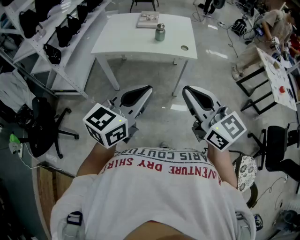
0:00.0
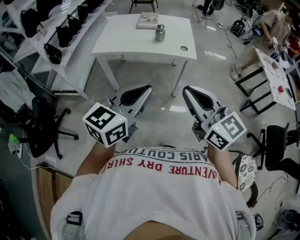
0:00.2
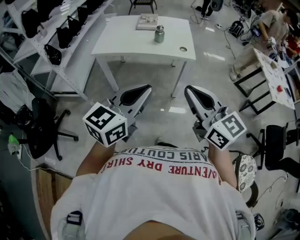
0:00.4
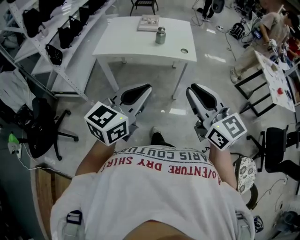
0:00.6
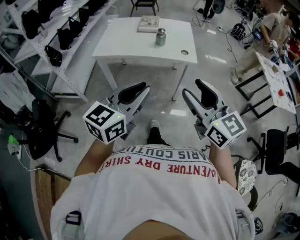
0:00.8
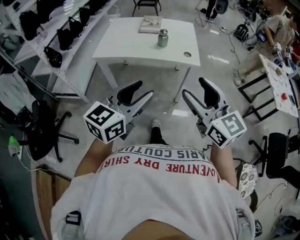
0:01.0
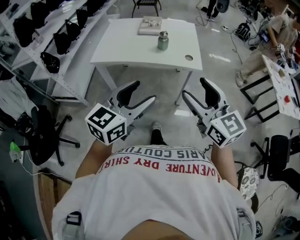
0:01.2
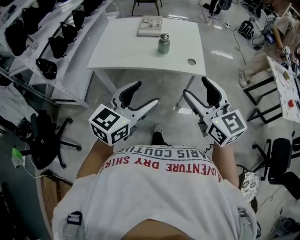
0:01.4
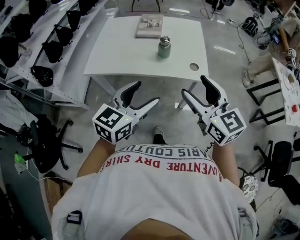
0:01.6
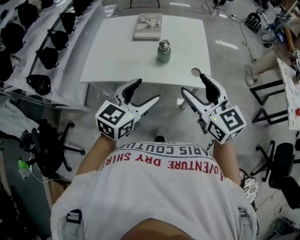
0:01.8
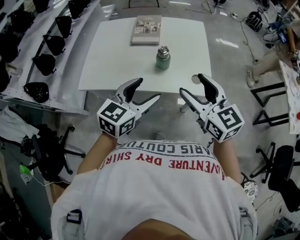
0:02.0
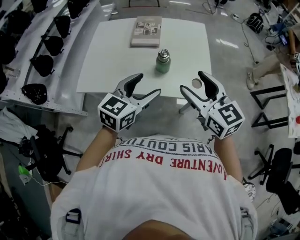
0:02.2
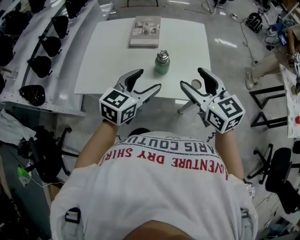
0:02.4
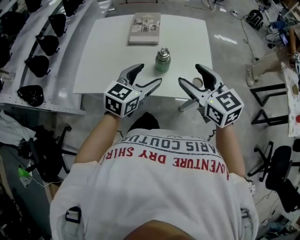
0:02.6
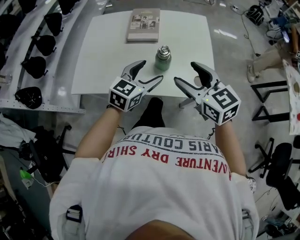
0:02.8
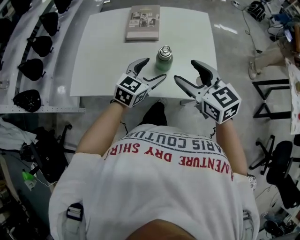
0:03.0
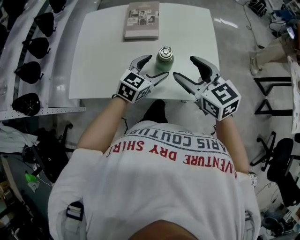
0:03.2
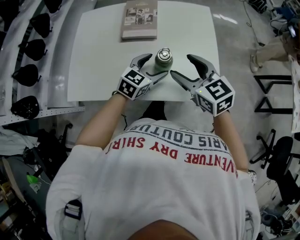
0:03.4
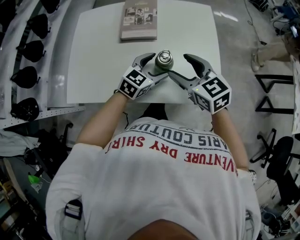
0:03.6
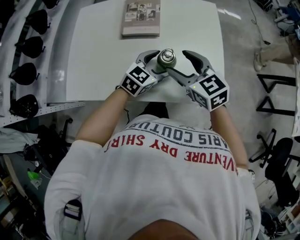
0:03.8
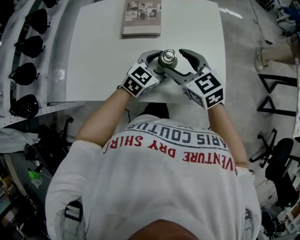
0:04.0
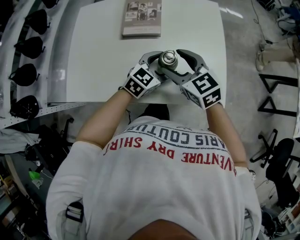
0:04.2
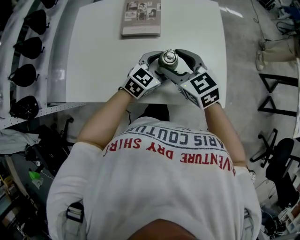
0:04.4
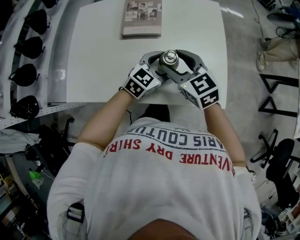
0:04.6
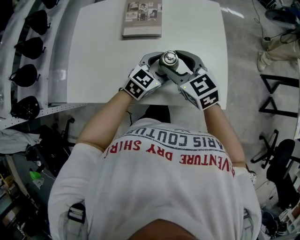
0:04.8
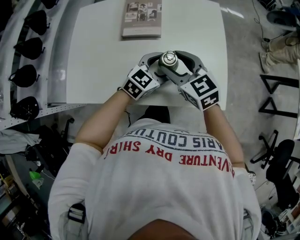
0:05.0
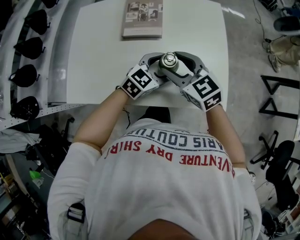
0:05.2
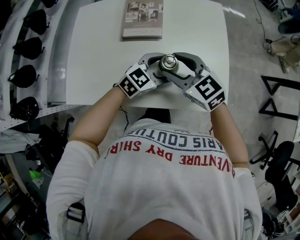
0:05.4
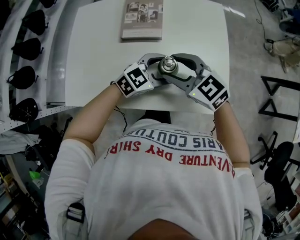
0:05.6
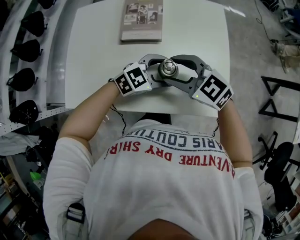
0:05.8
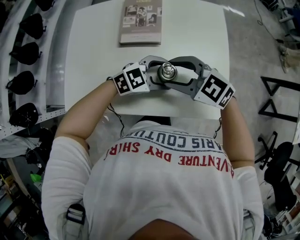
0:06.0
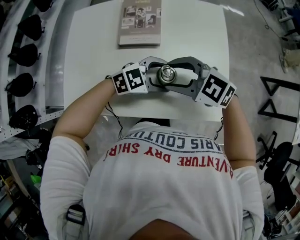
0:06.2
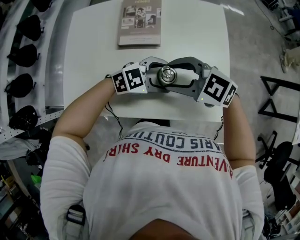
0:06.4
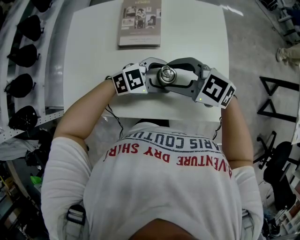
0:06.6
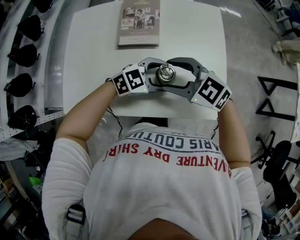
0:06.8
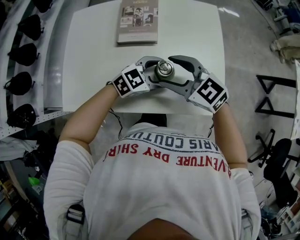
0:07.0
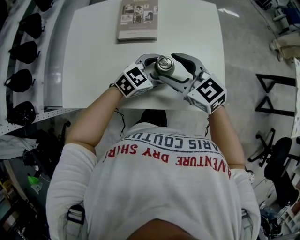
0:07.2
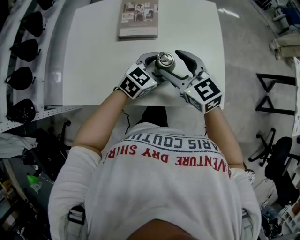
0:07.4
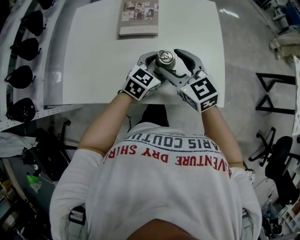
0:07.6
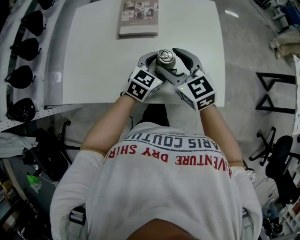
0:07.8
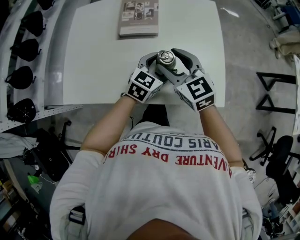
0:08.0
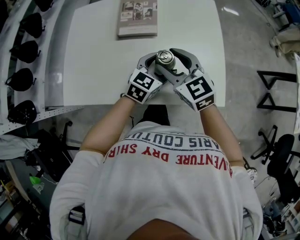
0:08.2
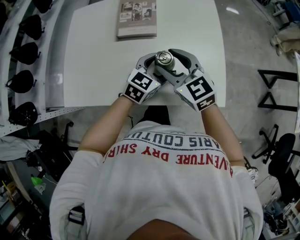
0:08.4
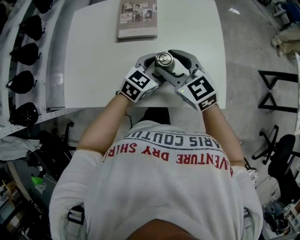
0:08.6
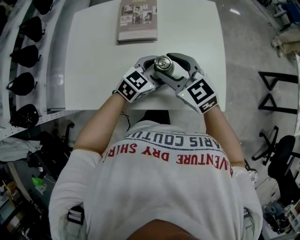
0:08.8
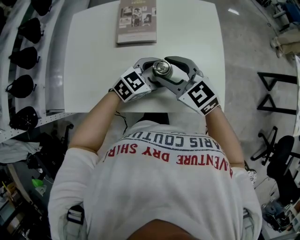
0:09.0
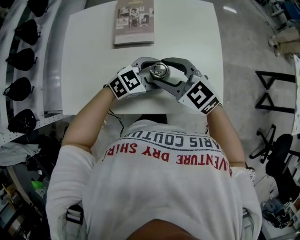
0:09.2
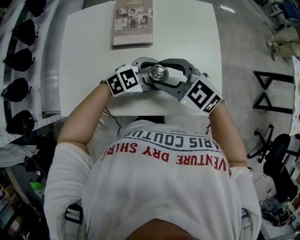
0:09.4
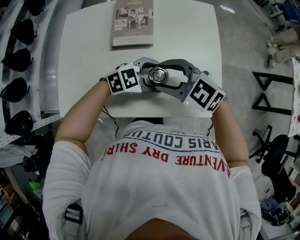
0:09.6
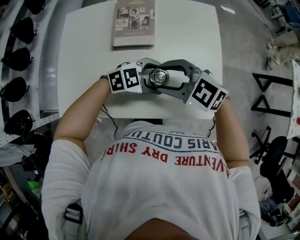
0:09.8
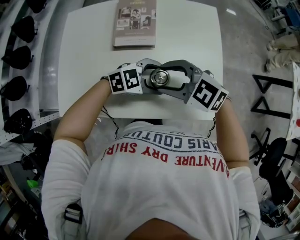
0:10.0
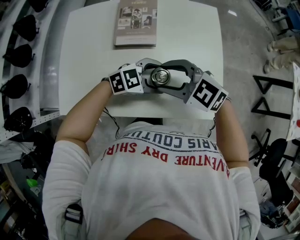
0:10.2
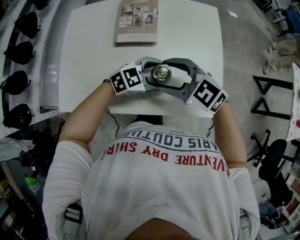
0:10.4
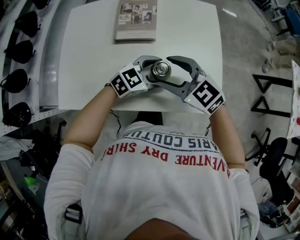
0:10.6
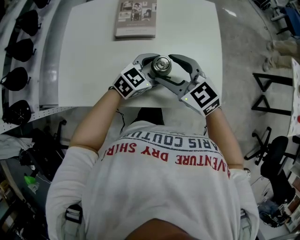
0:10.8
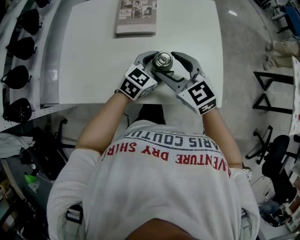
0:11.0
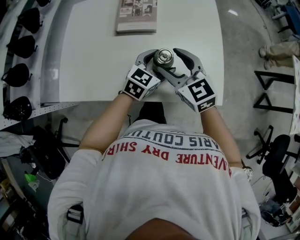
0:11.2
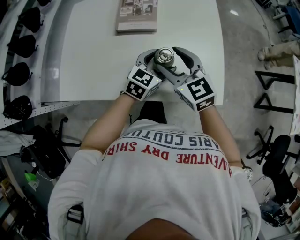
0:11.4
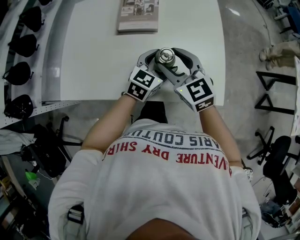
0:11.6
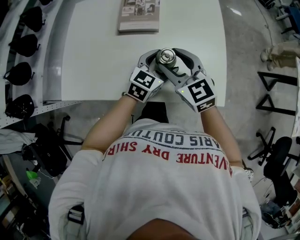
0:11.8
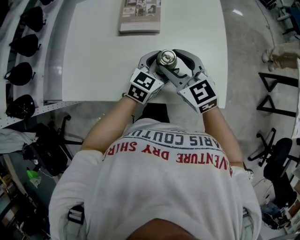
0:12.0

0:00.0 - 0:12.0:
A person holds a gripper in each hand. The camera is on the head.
0:00.0 - 0:01.6: The grippers both shift forward by some 25 cm. The right gripper opens its fingers, while the left gripper opens its fingers.
0:01.6 - 0:03.0: The grippers both shift forward and downward by about 30 cm.
0:03.0 - 0:04.4: The right gripper heads forward, downward and to the left, covering approximately 15 cm; the left gripper travels downward and forward by some 10 cm.
0:04.4 - 0:06.0: The left gripper turns by some 30 degrees. Meanwhile the right gripper swivels some 30 degrees.
0:06.0 - 0:07.6: The right gripper changes its angle by approximately 30 degrees, while the left gripper turns by some 30 degrees.
0:07.6 - 0:09.0: The grippers stay close to where they were, moving slightly.
0:10.4 - 0:12.0: The right gripper turns by about 30 degrees; the left gripper turns by approximately 40 degrees.

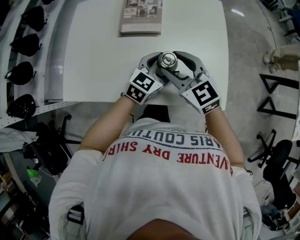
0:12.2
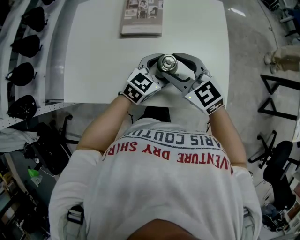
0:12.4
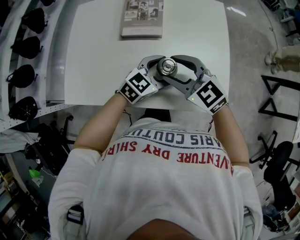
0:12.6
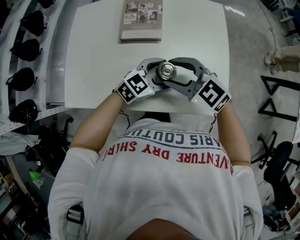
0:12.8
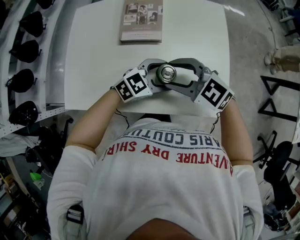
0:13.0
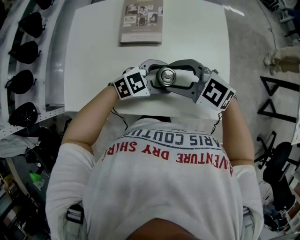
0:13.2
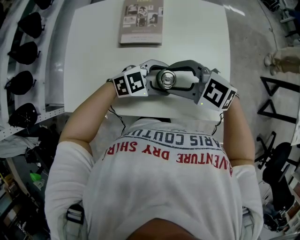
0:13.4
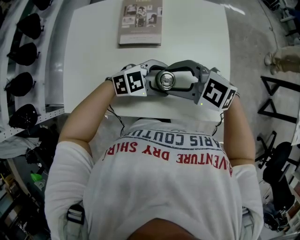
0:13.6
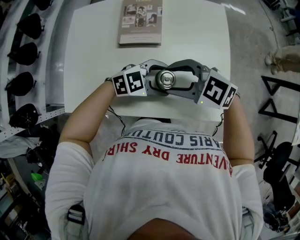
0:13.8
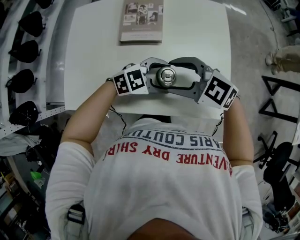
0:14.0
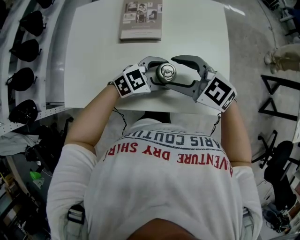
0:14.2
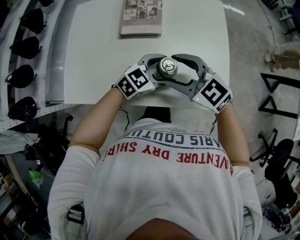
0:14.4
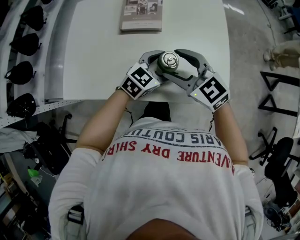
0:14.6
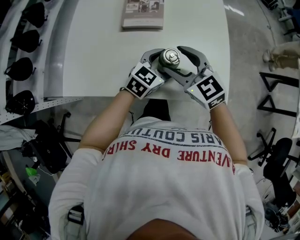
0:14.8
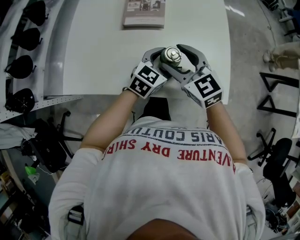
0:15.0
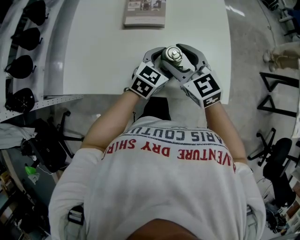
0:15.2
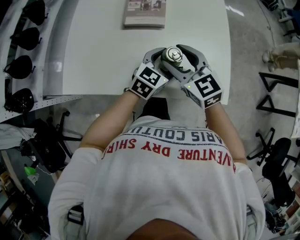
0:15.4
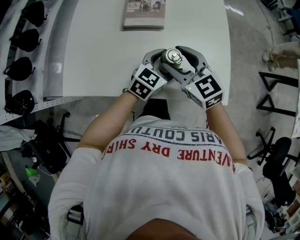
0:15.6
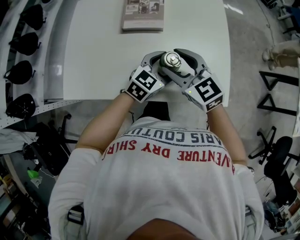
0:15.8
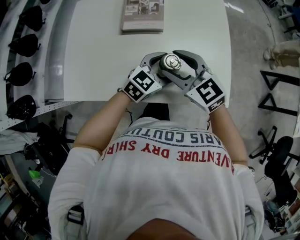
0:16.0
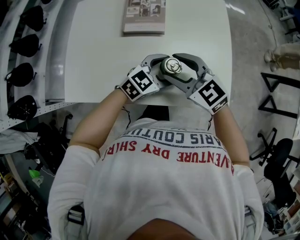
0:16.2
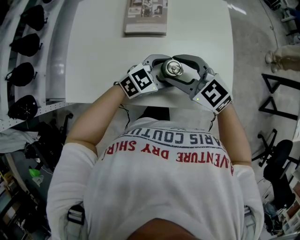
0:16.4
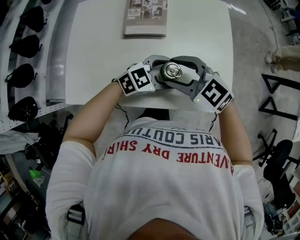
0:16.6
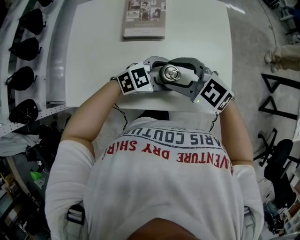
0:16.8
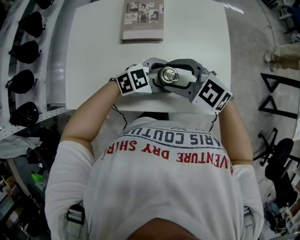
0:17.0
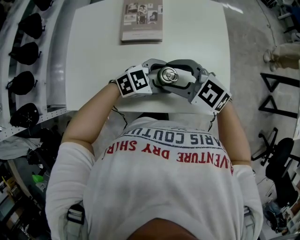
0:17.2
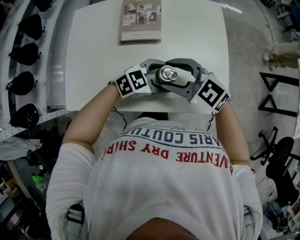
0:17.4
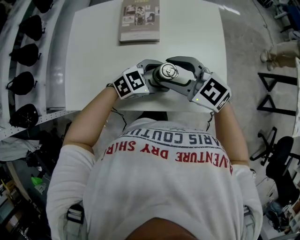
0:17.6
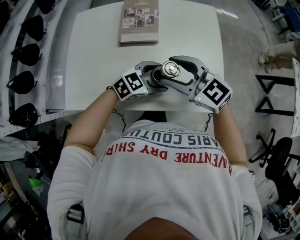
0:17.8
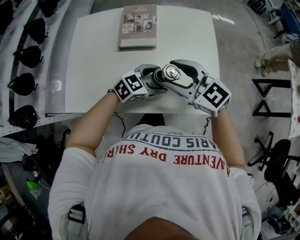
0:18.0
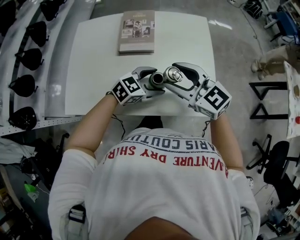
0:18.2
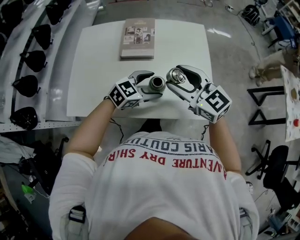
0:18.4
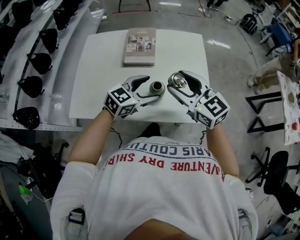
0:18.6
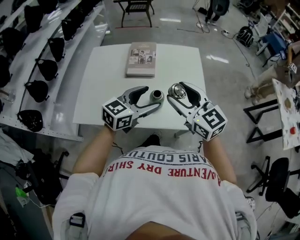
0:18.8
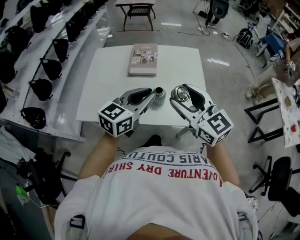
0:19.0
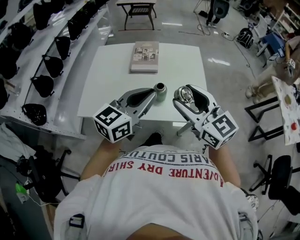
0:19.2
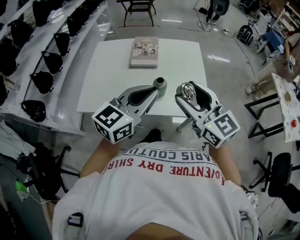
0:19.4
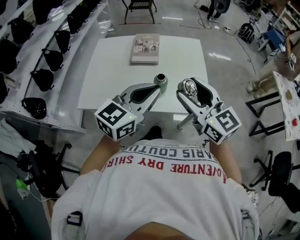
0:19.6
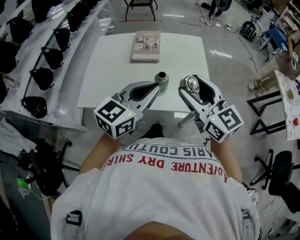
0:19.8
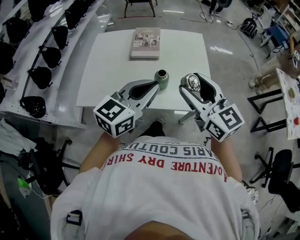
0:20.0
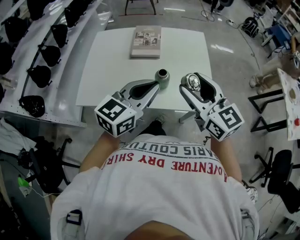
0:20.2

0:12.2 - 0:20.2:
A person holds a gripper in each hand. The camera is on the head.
0:12.2 - 0:13.8: The right gripper changes its angle by some 40 degrees, while the left gripper changes its angle by some 40 degrees.
0:13.8 - 0:15.4: The right gripper rotates some 40 degrees. The left gripper changes its angle by some 50 degrees.
0:15.4 - 0:17.0: The left gripper rotates approximately 40 degrees; the right gripper swivels roughly 30 degrees.
0:17.0 - 0:18.6: Both grippers travel together upward, some 10 cm. The right gripper turns by some 30 degrees, while the left gripper turns by some 30 degrees.
0:18.6 - 0:20.2: The left gripper shifts about 15 cm upward and backward, and closes up. The right gripper goes some 10 cm backward and upward.

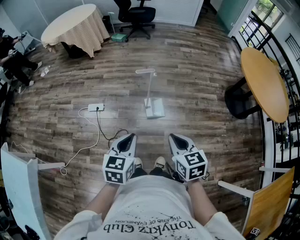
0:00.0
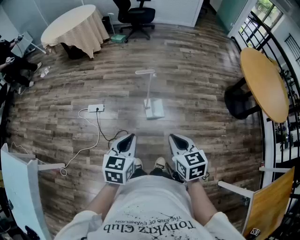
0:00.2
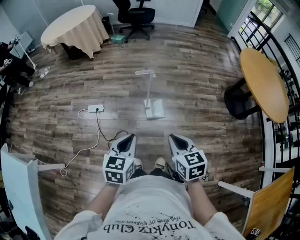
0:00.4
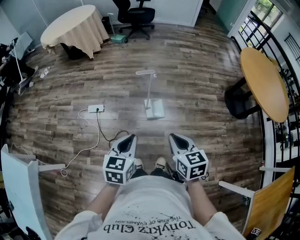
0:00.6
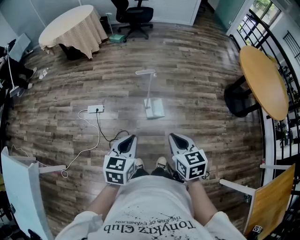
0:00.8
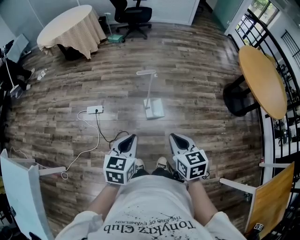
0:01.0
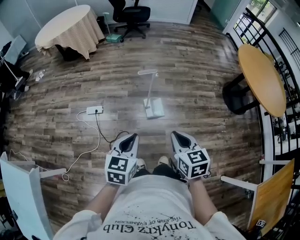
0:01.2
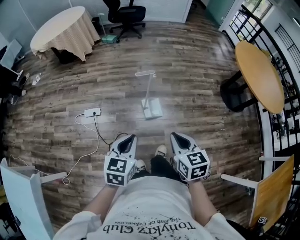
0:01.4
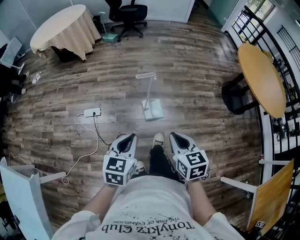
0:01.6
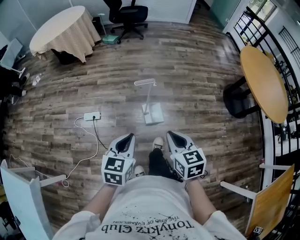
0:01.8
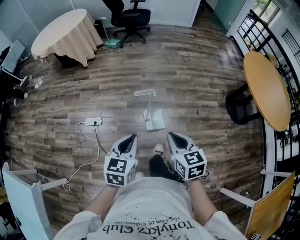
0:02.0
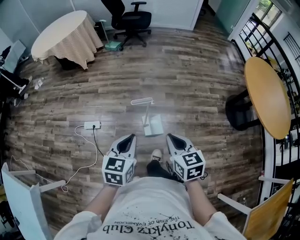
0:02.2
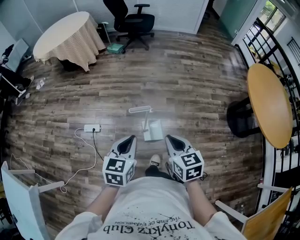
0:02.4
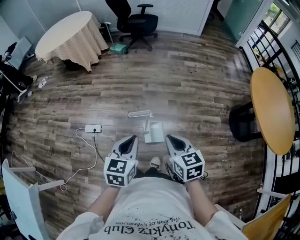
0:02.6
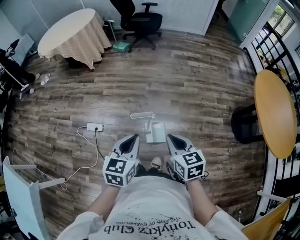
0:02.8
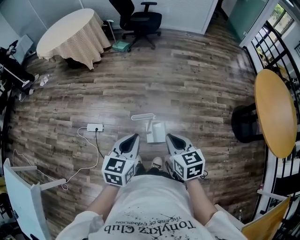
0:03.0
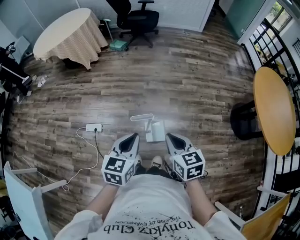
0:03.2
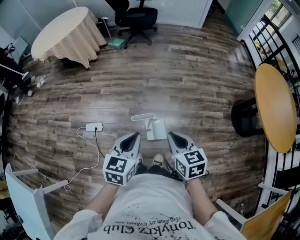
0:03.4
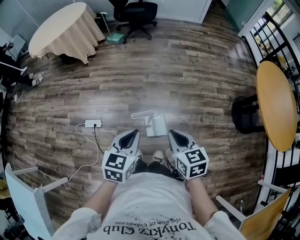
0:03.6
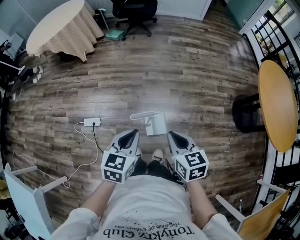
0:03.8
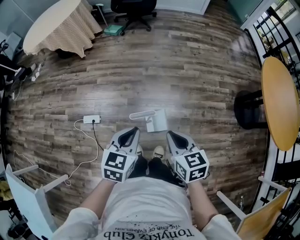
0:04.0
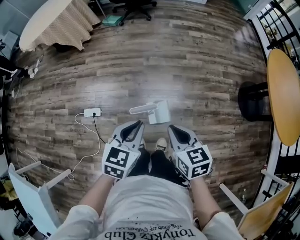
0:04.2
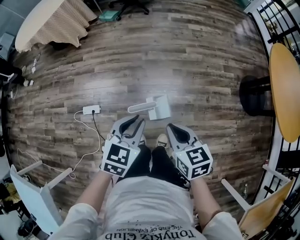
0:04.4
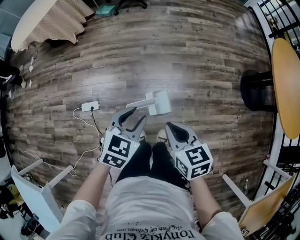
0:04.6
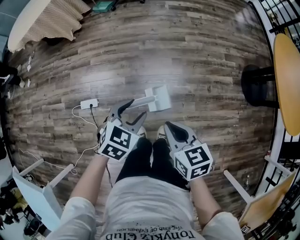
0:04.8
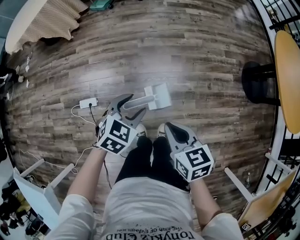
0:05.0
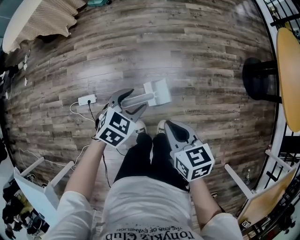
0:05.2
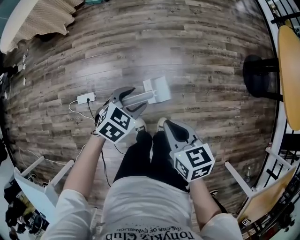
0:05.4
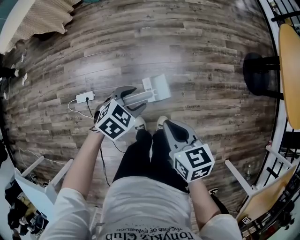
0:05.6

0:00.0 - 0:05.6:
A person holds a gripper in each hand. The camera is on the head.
0:00.0 - 0:01.4: The grippers move only a little.
0:01.4 - 0:02.8: Both grippers move forward, approximately 25 cm.
0:02.8 - 0:04.2: The two grippers go approximately 10 cm forward and downward.
0:04.2 - 0:05.6: The right gripper heads downward, covering roughly 5 cm. The left gripper goes roughly 15 cm downward, turns by approximately 40 degrees, and opens its fingers.
